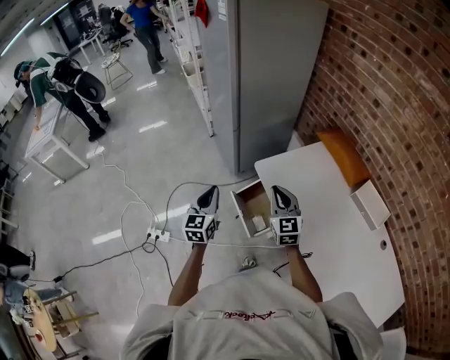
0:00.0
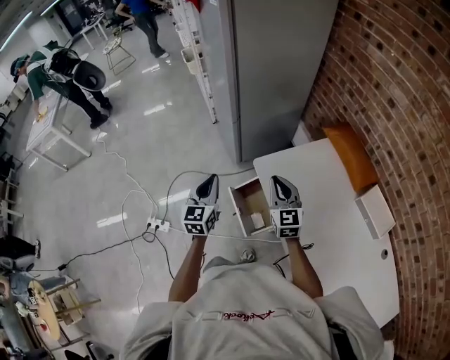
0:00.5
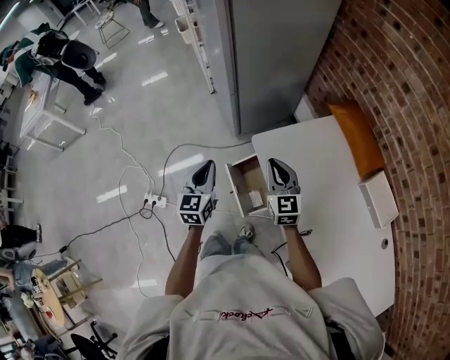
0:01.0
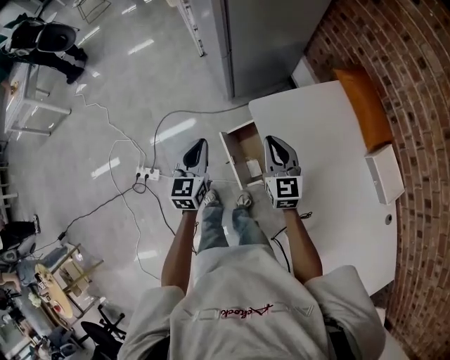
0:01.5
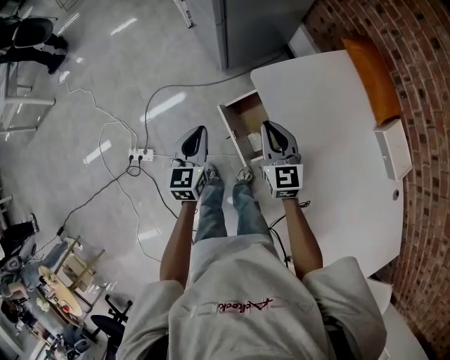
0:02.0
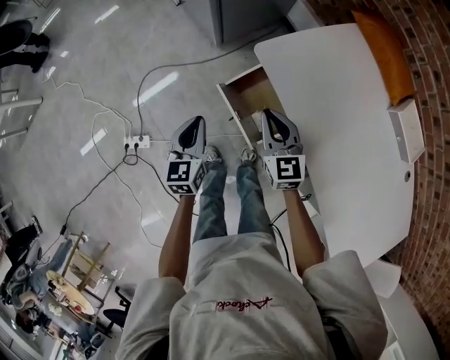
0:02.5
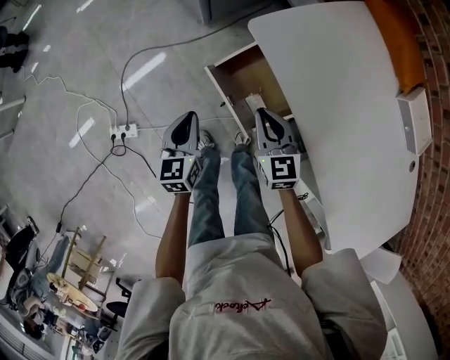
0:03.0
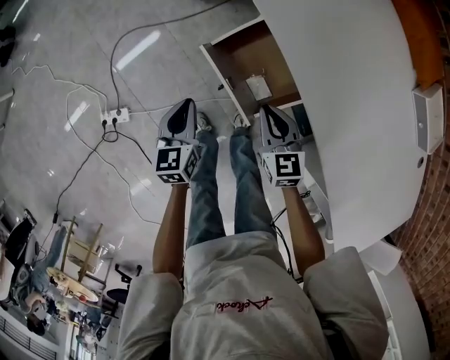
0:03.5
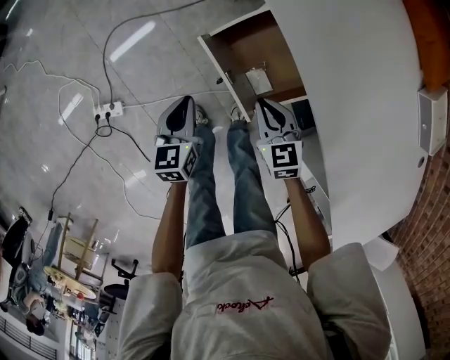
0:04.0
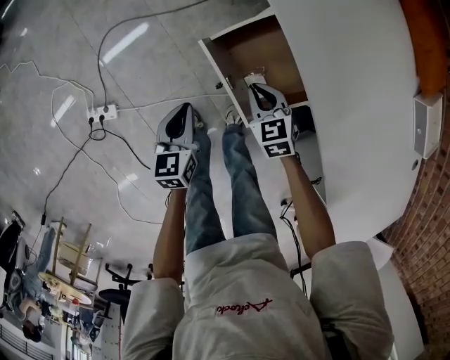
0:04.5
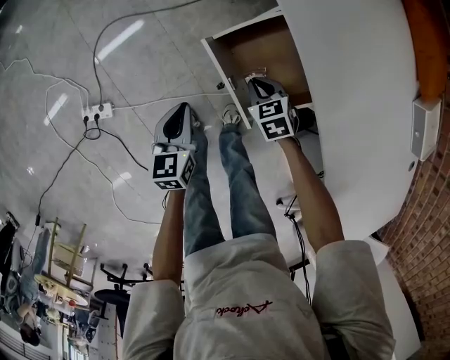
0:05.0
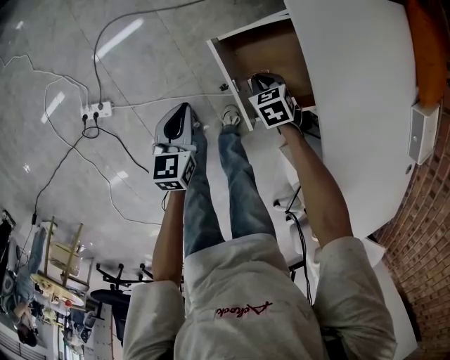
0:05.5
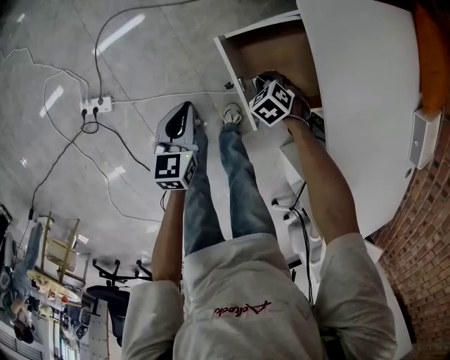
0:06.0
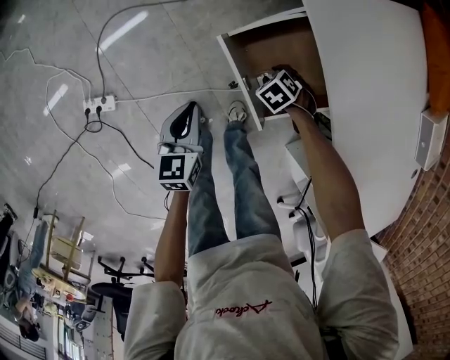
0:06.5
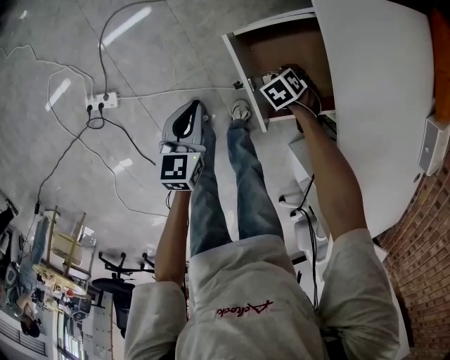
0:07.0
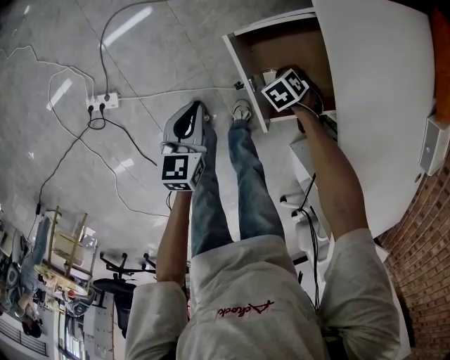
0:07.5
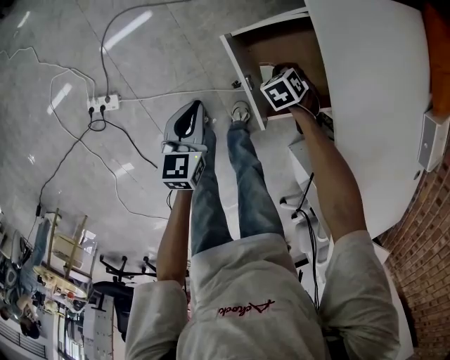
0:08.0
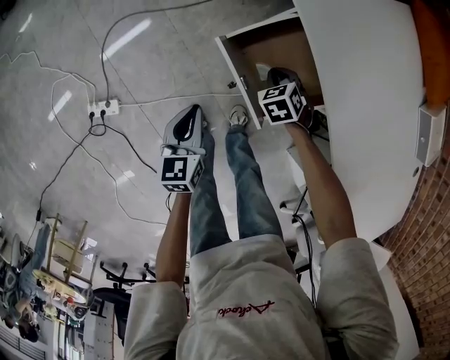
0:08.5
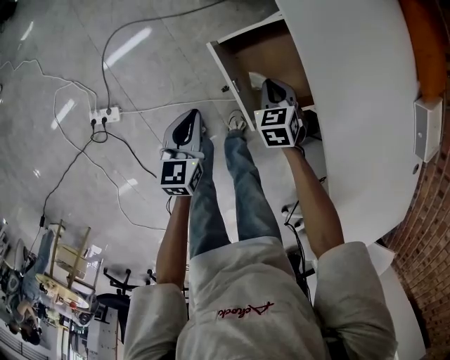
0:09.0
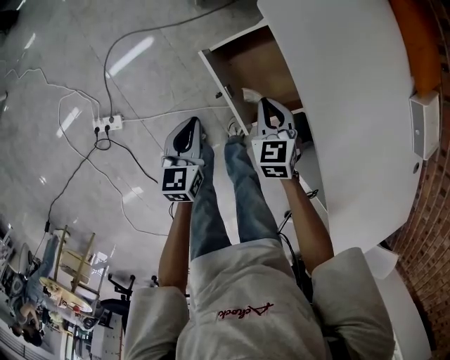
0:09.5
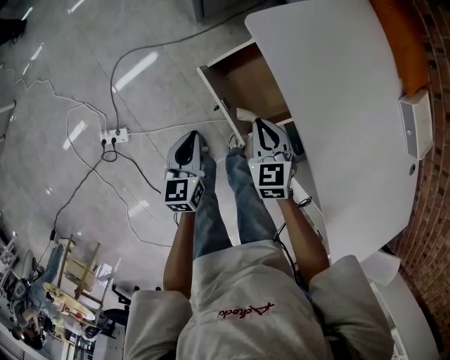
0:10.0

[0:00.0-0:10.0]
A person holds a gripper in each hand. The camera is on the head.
0:00.0 to 0:02.0: The right gripper goes approximately 15 cm downward and forward. The left gripper travels downward by about 15 cm.
0:02.0 to 0:04.0: Both grippers move downward, some 25 cm. The right gripper rotates some 20 degrees.
0:04.0 to 0:06.0: The right gripper moves downward, roughly 15 cm, and tilts its fingers roughly 40 degrees downward.
0:06.0 to 0:08.0: The right gripper ends up approximately 5 cm from where it was, and opens, then closes once more.
0:08.0 to 0:10.0: The right gripper heads upward, covering roughly 20 cm, and tips its fingers upward by about 40 degrees. The left gripper moves upward, roughly 5 cm.

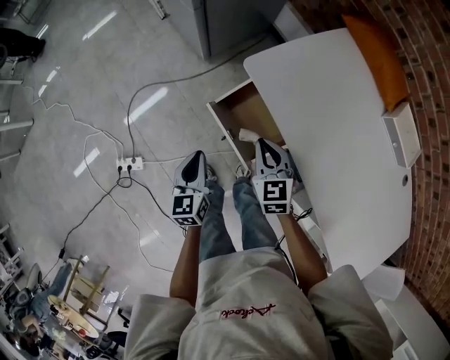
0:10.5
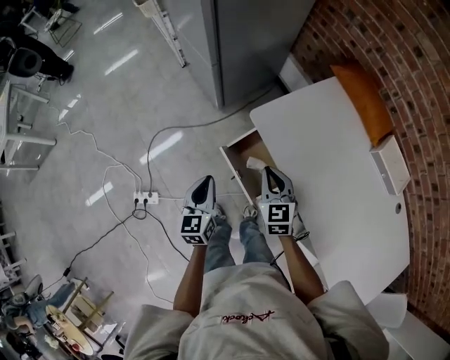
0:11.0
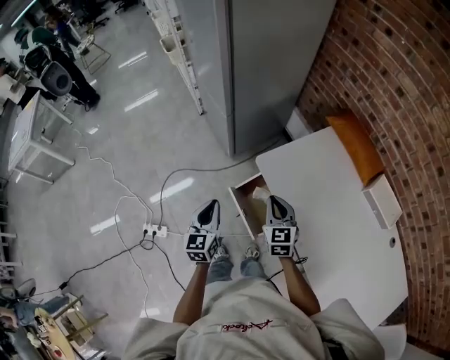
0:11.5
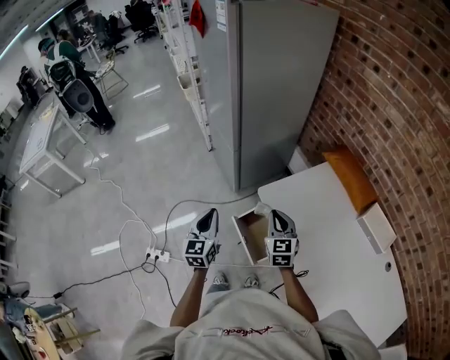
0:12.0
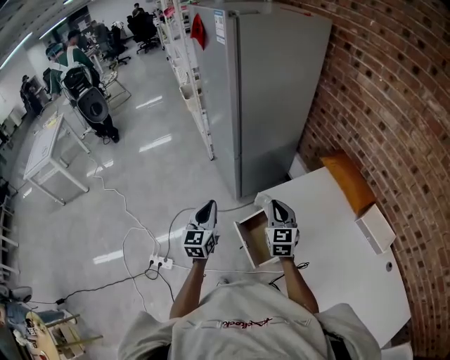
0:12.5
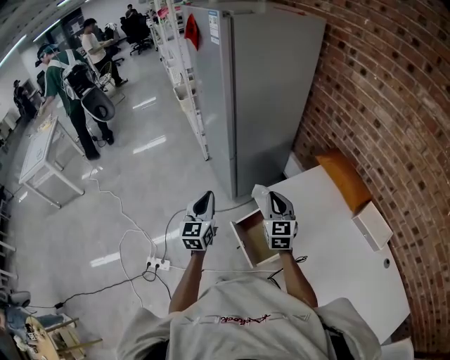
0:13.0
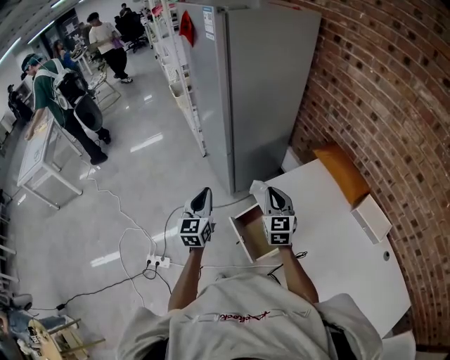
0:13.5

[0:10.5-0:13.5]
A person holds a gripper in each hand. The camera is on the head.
0:10.5 to 0:12.0: The grippers both shift upward by approximately 20 cm. The left gripper swivels some 20 degrees.
0:12.0 to 0:13.5: The grippers both shift upward by some 5 cm.

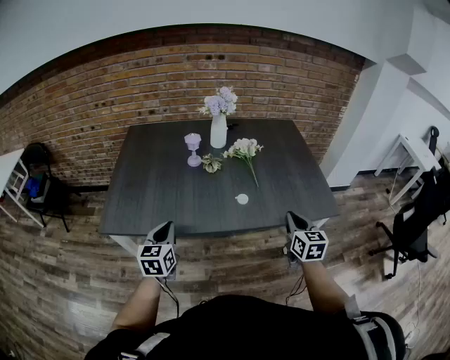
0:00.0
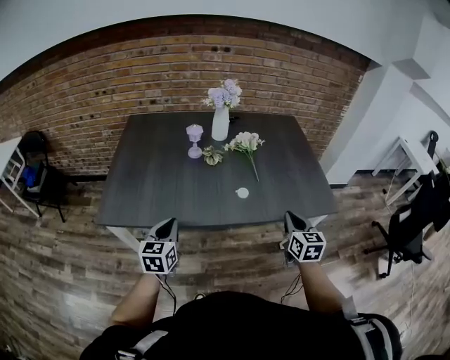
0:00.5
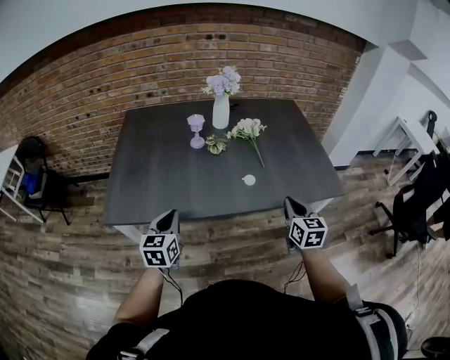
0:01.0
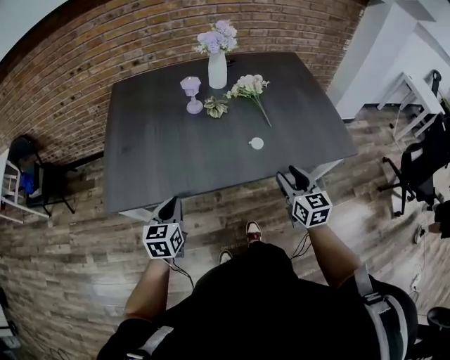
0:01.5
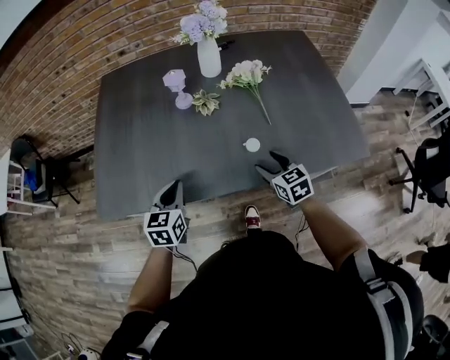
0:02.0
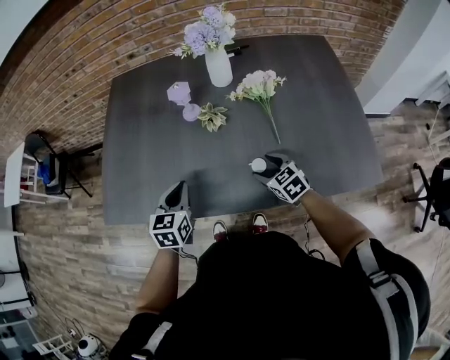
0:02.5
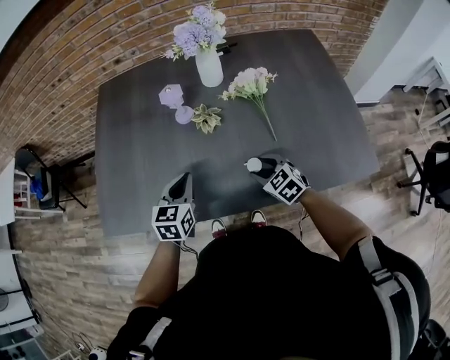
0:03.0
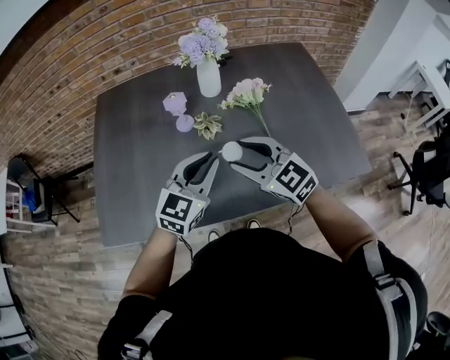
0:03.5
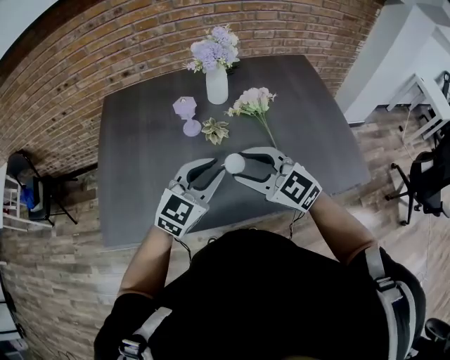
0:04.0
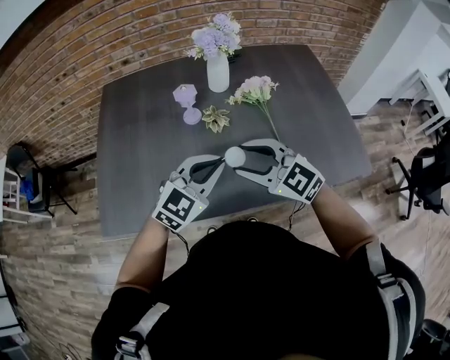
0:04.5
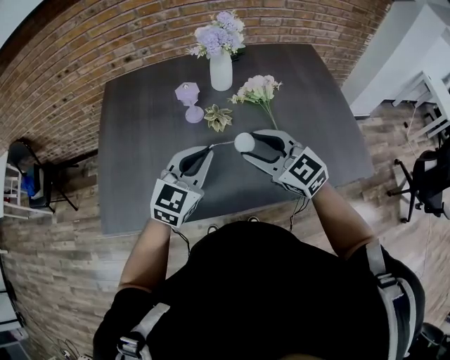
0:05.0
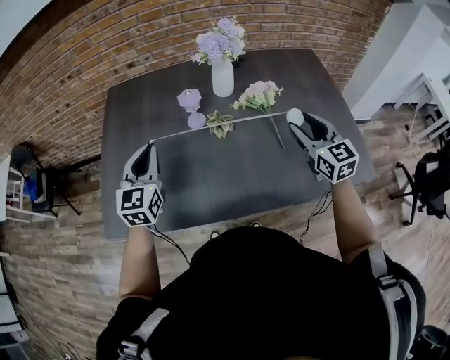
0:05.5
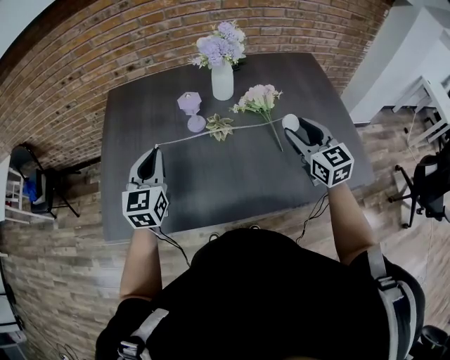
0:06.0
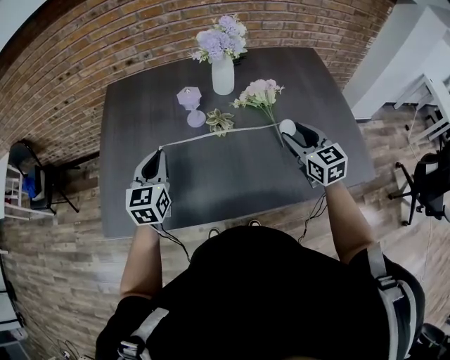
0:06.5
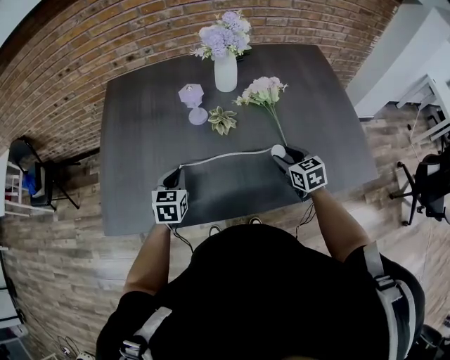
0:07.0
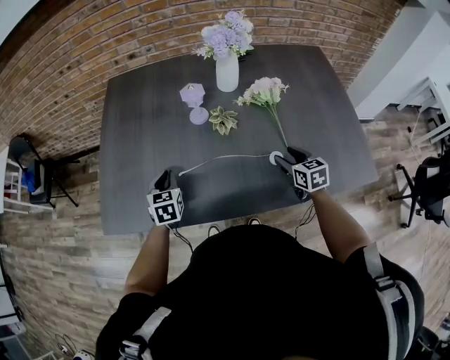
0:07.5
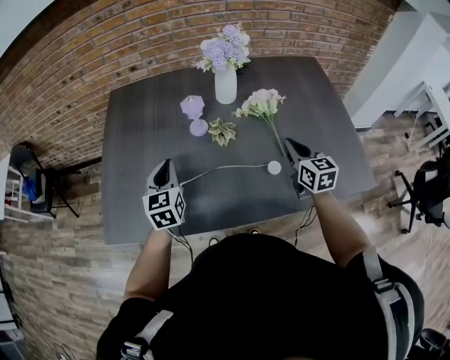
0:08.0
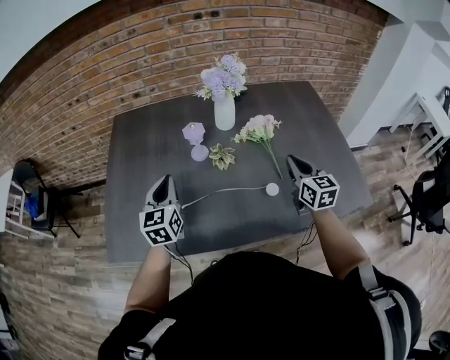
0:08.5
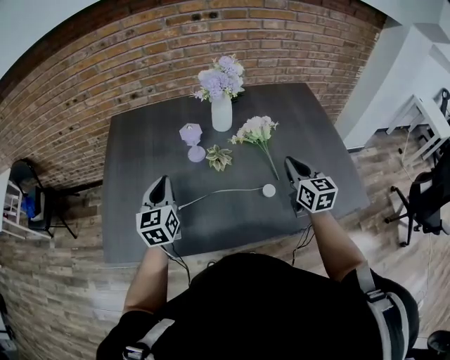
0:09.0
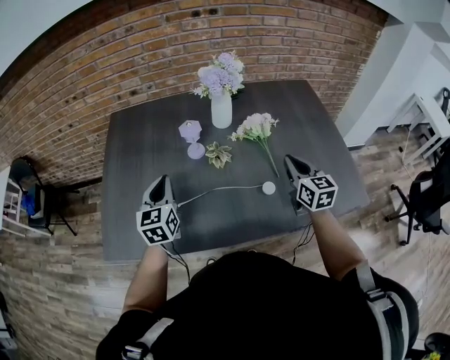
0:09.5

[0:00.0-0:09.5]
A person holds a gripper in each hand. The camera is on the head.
0:00.0 to 0:02.0: The left gripper is displaced forward and downward by approximately 10 cm; the right gripper shifts roughly 20 cm downward, to the left and forward, rotates roughly 30 degrees, and opens its fingers.
0:02.0 to 0:04.0: The right gripper moves upward and to the left, approximately 20 cm, and rotates some 40 degrees; the left gripper goes roughly 20 cm upward, to the right and forward, and changes its angle by about 40 degrees.
0:04.0 to 0:05.5: The right gripper travels to the right and forward by roughly 20 cm, and turns by roughly 40 degrees; the left gripper travels to the left and forward by about 20 cm, and rotates some 40 degrees.
0:05.5 to 0:07.5: The two grippers go roughly 20 cm downward. The left gripper rotates roughly 30 degrees; the right gripper rotates about 30 degrees.
0:07.5 to 0:09.5: The grippers both shift upward by approximately 15 cm. The right gripper swivels some 20 degrees, and closes. Meanwhile the left gripper turns by some 20 degrees.

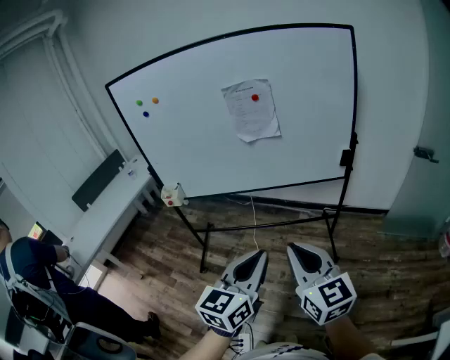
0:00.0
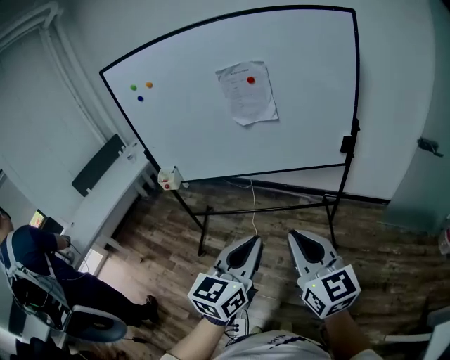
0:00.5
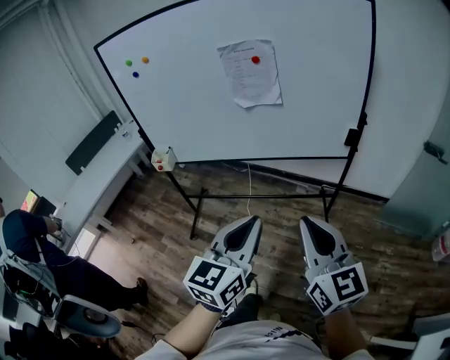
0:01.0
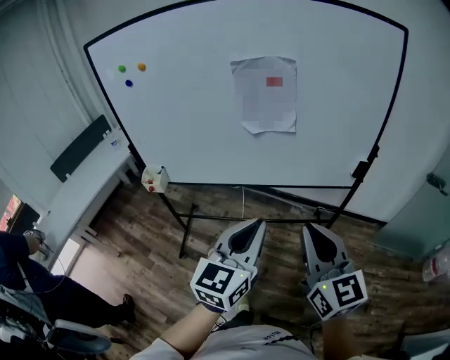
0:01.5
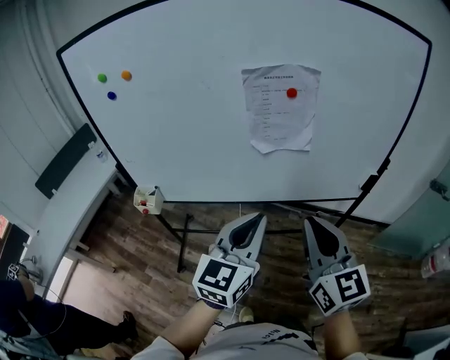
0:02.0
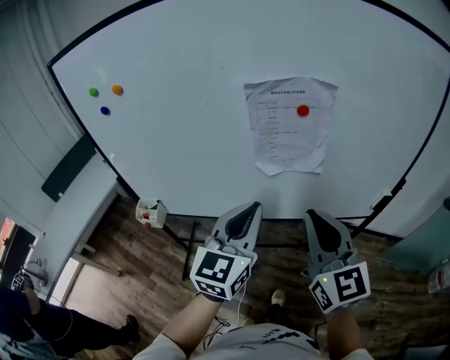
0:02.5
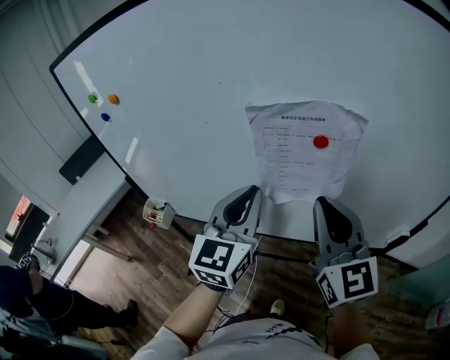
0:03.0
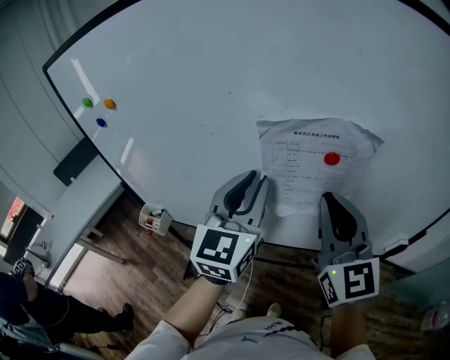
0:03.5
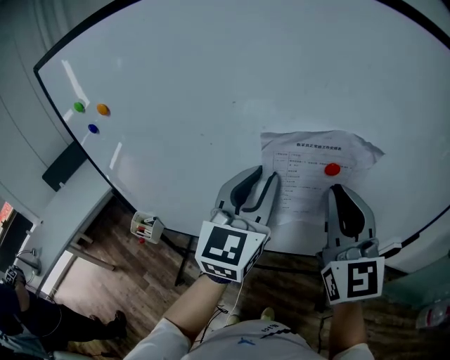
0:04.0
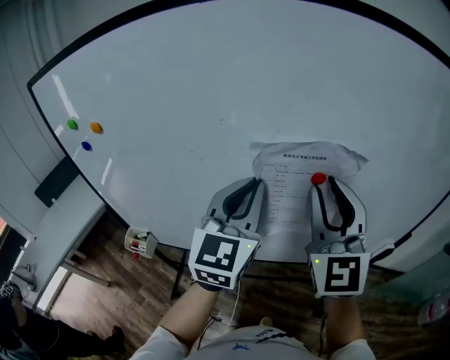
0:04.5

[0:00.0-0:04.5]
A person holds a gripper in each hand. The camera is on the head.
0:00.0 to 0:02.0: Both grippers move forward, about 30 cm.
0:02.0 to 0:04.5: Both grippers travel together forward and upward, roughly 30 cm. The right gripper rotates approximately 30 degrees.
